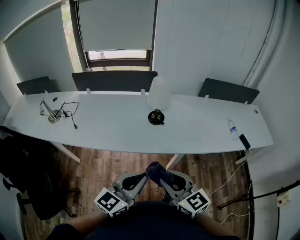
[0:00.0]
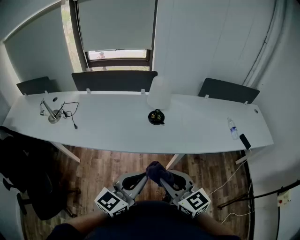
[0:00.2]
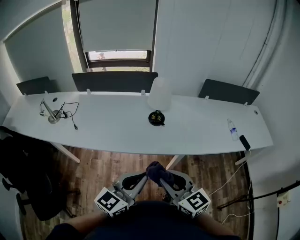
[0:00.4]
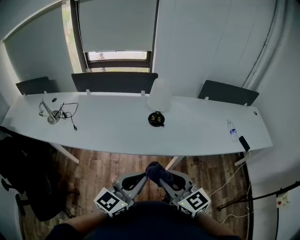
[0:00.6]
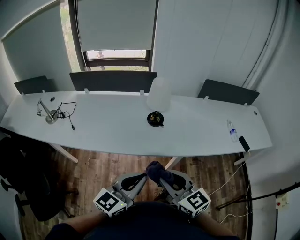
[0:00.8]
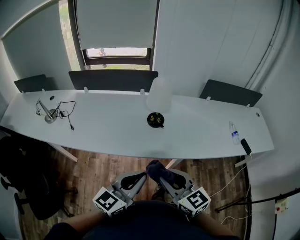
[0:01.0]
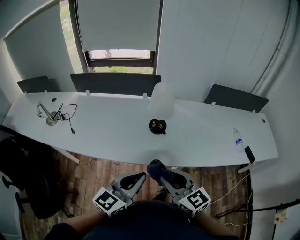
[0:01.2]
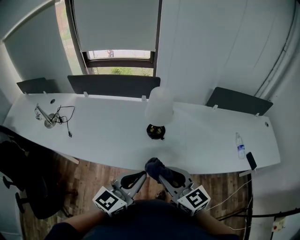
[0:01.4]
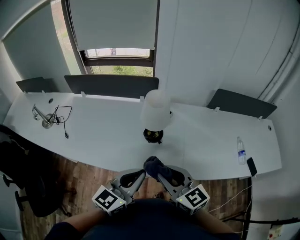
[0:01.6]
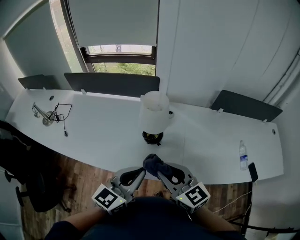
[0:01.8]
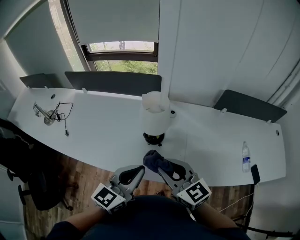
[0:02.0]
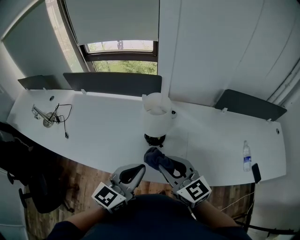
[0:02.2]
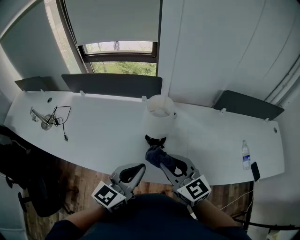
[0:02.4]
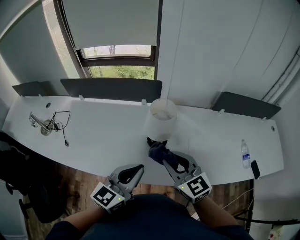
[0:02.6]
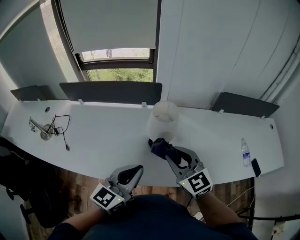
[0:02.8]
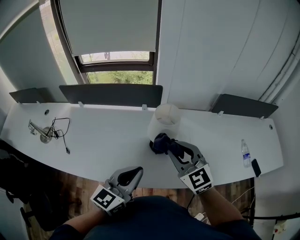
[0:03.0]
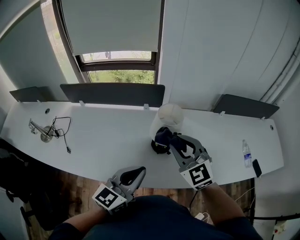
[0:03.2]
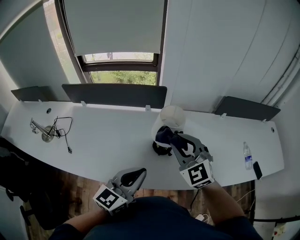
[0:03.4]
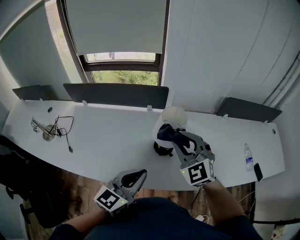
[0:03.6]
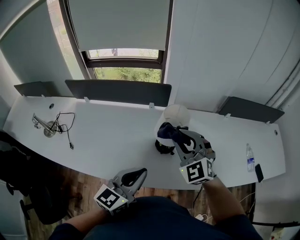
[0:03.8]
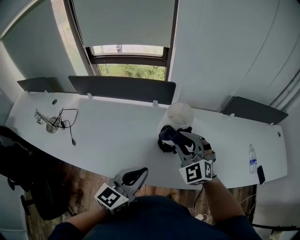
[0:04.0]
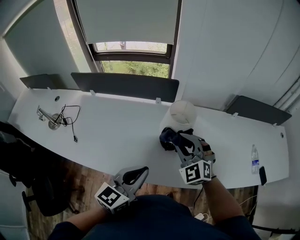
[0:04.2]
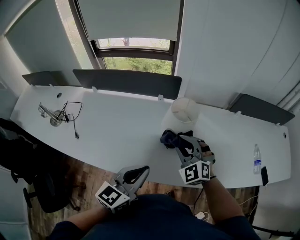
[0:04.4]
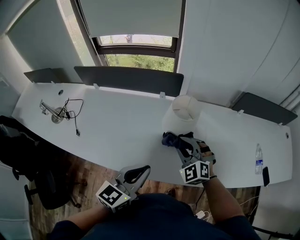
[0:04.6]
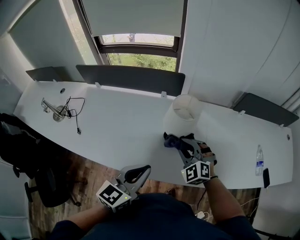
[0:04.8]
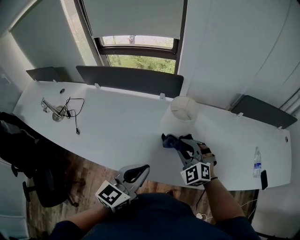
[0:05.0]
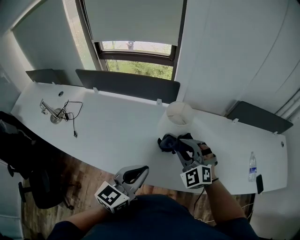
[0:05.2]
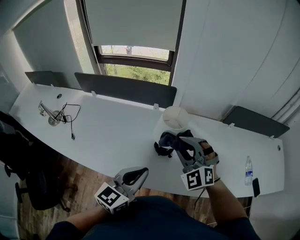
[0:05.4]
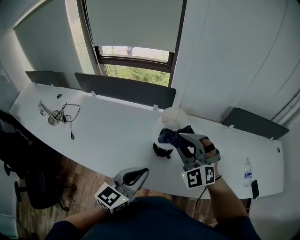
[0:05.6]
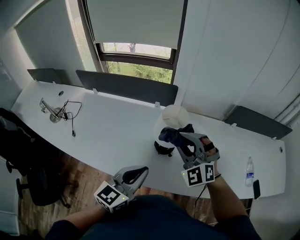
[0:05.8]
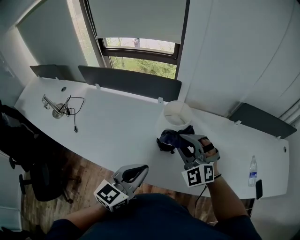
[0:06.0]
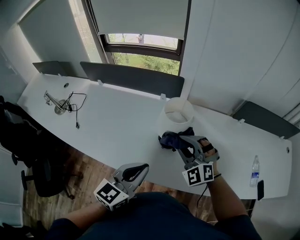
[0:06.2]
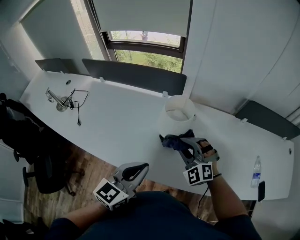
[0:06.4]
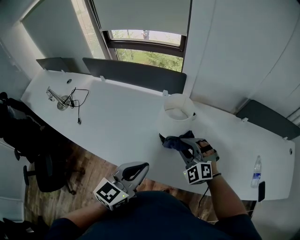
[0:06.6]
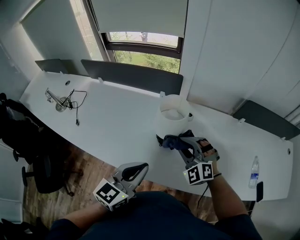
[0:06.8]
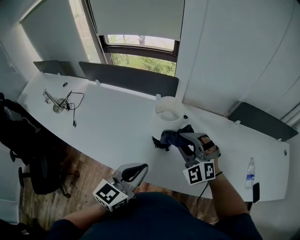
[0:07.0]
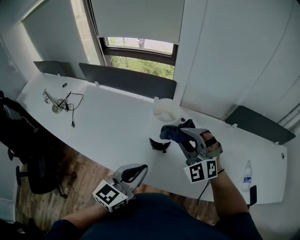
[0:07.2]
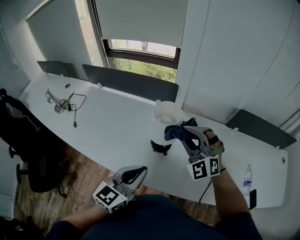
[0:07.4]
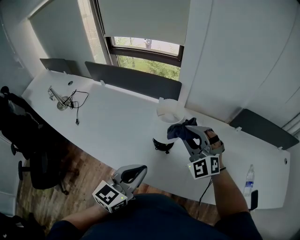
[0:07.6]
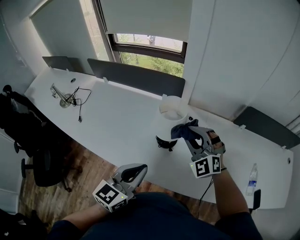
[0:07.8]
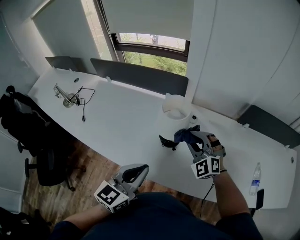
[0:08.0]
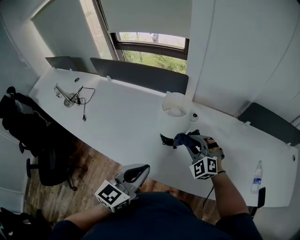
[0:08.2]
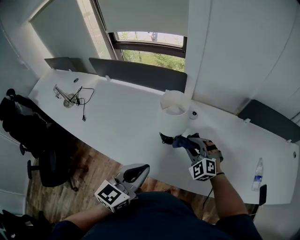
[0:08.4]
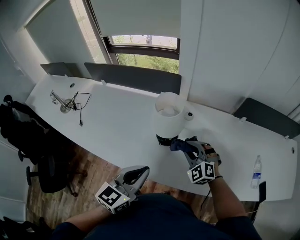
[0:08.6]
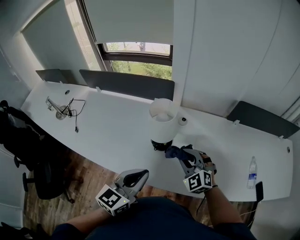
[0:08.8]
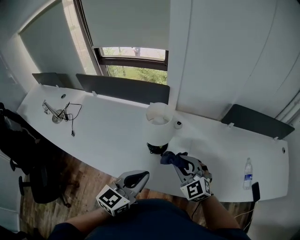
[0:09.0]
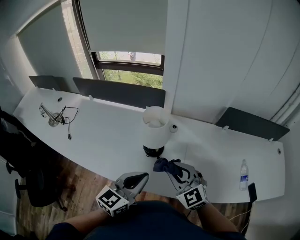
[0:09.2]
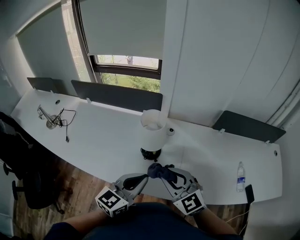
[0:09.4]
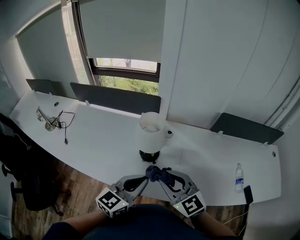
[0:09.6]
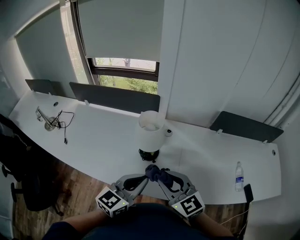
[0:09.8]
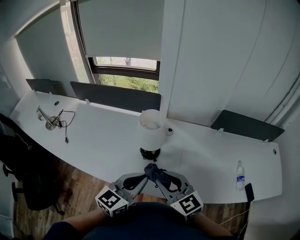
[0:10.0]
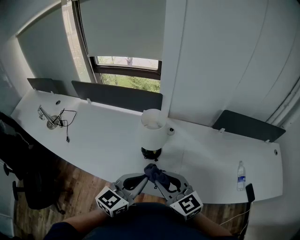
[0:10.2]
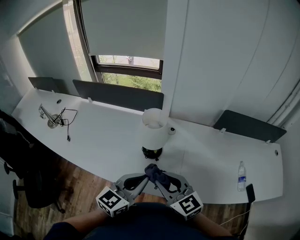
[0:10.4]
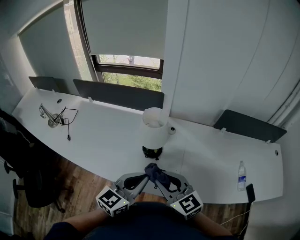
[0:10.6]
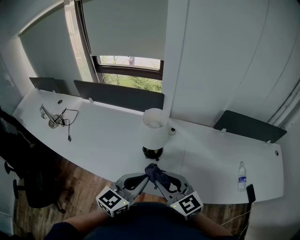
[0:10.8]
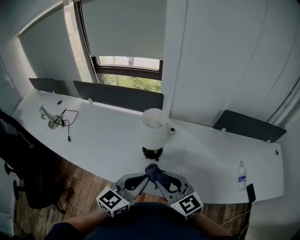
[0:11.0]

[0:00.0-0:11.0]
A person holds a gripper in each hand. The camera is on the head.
0:00.0 to 0:01.6: Both grippers travel together forward, approximately 20 cm.
0:01.6 to 0:03.2: The left gripper moves forward and to the left, roughly 10 cm. Meanwhile the right gripper moves forward, approximately 20 cm, and turns by about 30 degrees.
0:03.2 to 0:04.8: The right gripper heads downward, covering roughly 15 cm, and rotates about 30 degrees.
0:04.8 to 0:06.2: The right gripper is displaced upward by approximately 5 cm.
0:06.2 to 0:07.8: The right gripper moves up and down over some 15 cm, changing direction 2 times.
0:07.8 to 0:09.4: The right gripper heads backward, covering about 15 cm, and swivels approximately 30 degrees.
0:09.4 to 0:11.0: The grippers move only a little.

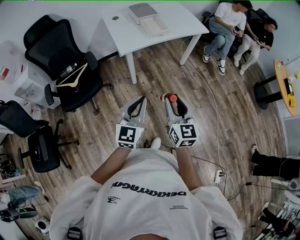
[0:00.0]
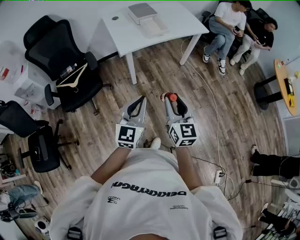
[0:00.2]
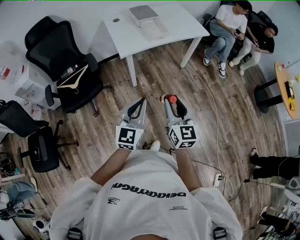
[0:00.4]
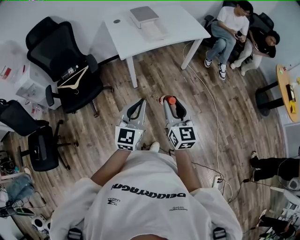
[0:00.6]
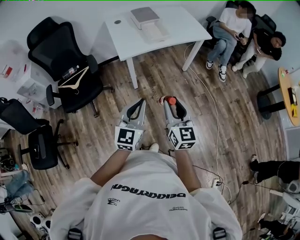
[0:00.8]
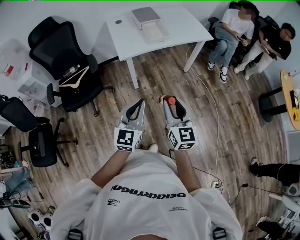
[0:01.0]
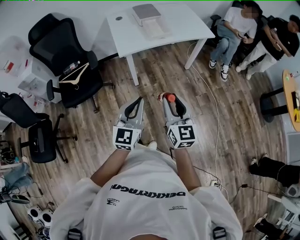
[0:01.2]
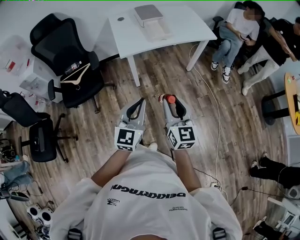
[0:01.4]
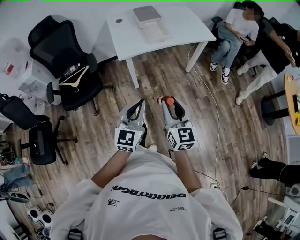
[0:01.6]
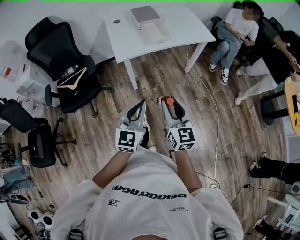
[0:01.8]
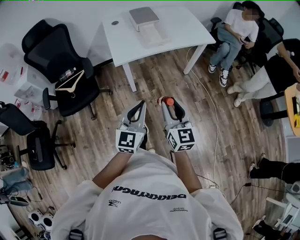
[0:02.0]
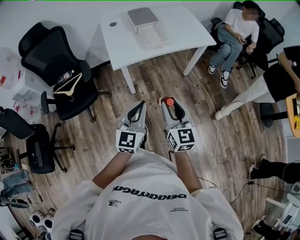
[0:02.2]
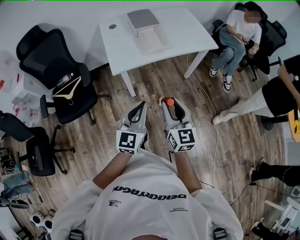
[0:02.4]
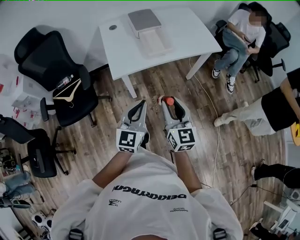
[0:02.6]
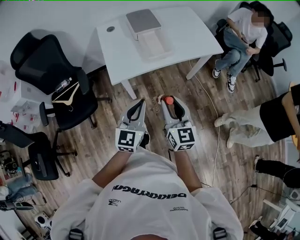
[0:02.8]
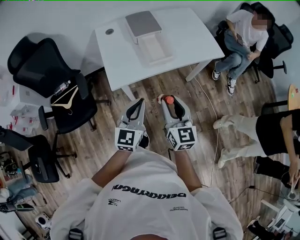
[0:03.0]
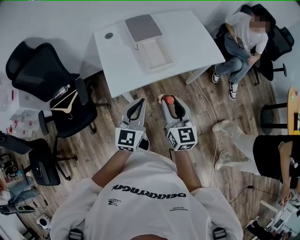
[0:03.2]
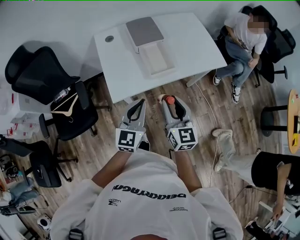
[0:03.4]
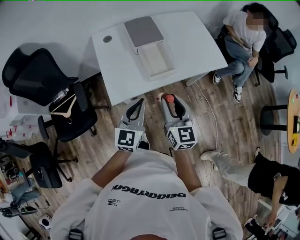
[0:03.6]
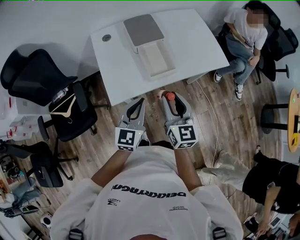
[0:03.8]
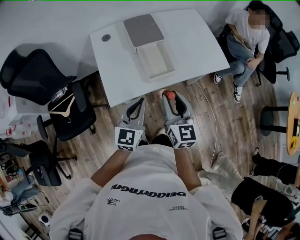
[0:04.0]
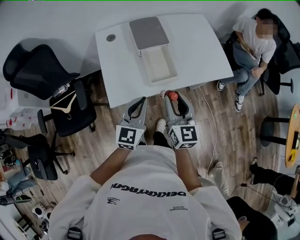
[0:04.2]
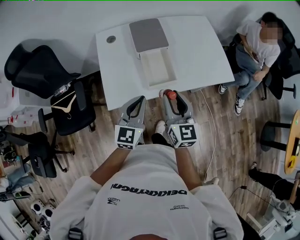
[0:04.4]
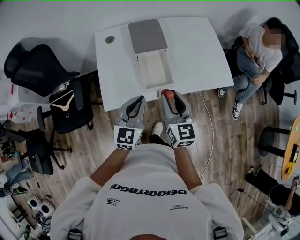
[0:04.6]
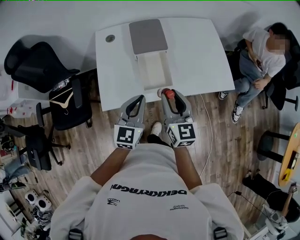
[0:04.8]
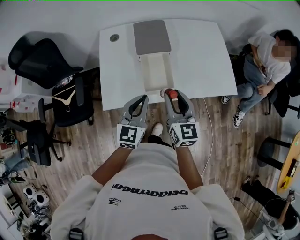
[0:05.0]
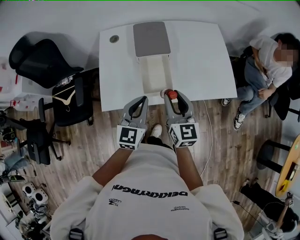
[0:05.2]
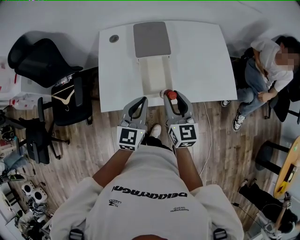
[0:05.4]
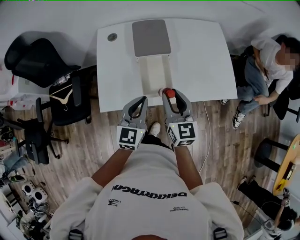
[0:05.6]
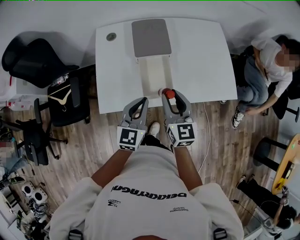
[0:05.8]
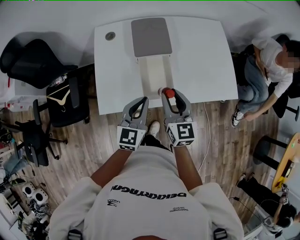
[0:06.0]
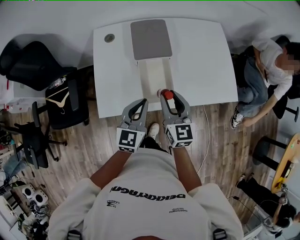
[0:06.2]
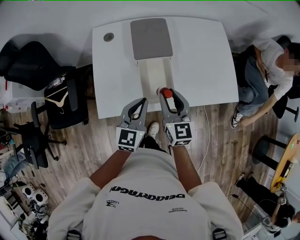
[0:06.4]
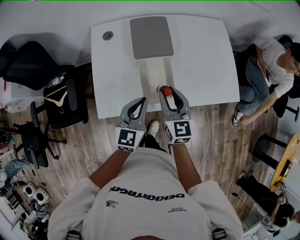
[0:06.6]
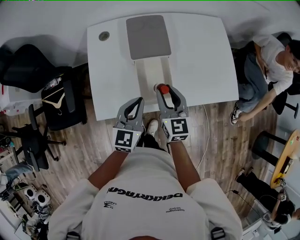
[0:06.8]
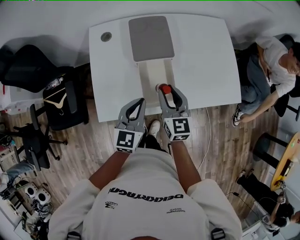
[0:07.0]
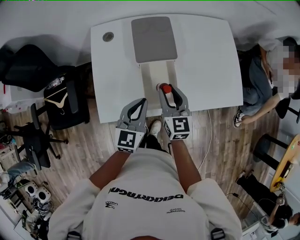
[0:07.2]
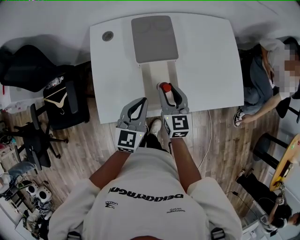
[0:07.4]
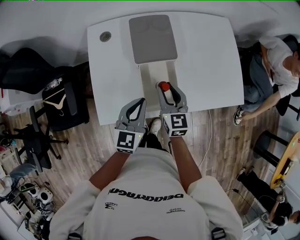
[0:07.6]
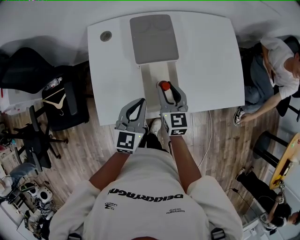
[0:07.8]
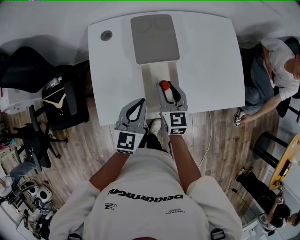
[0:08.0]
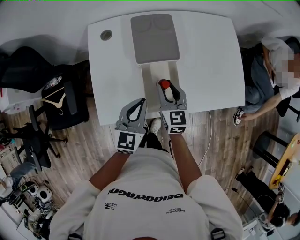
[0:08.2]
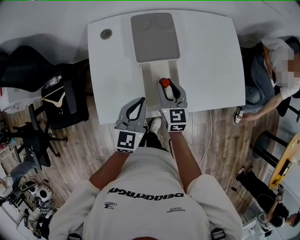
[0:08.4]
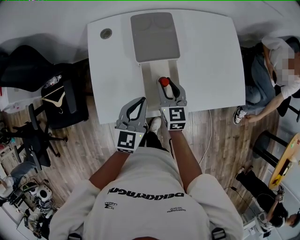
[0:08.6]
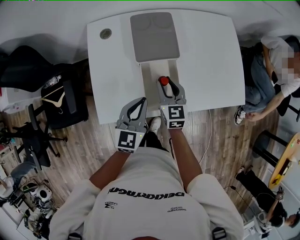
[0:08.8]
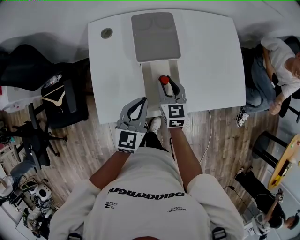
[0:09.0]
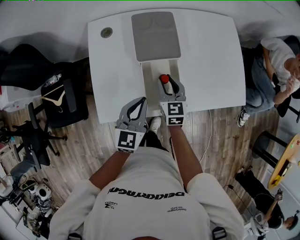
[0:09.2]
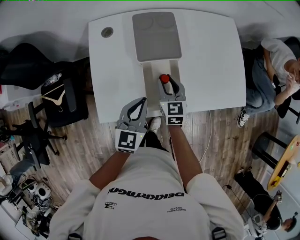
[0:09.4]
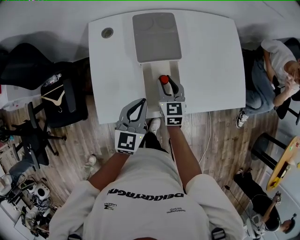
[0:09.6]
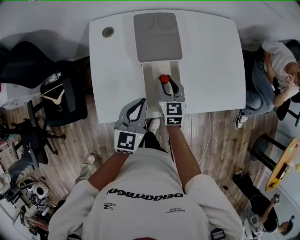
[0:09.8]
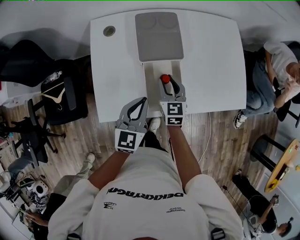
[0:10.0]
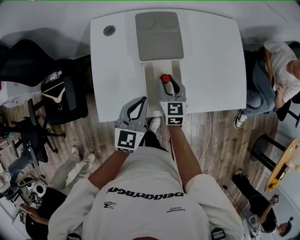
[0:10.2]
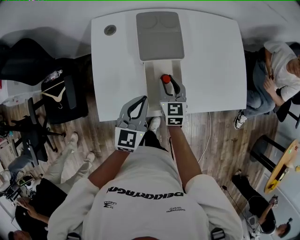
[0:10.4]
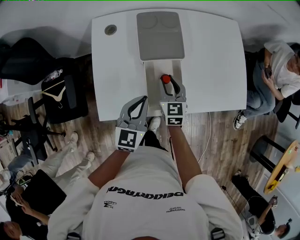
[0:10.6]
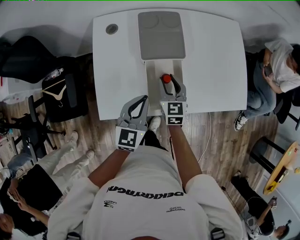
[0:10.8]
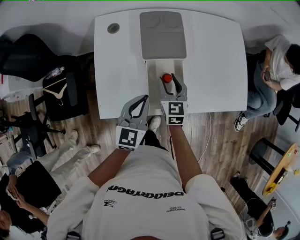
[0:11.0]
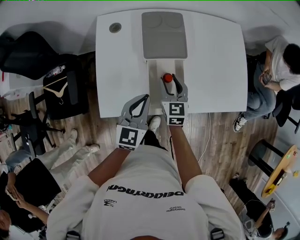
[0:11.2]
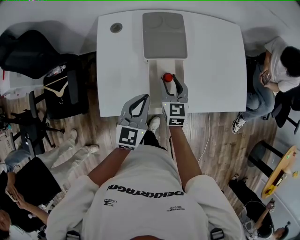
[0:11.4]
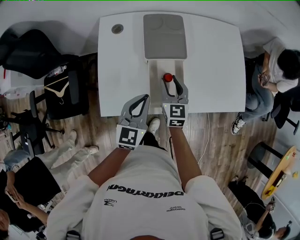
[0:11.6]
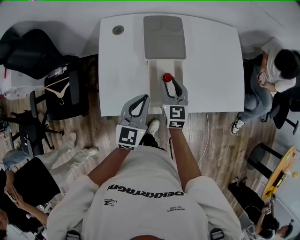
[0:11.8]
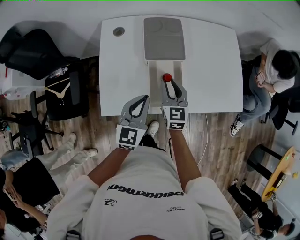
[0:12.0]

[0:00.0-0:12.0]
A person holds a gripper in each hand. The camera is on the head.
0:00.0 to 0:01.6: The left gripper is displaced to the right and forward by some 10 cm, while the right gripper shifts approximately 10 cm forward and to the right.
0:01.6 to 0:03.0: Both grippers move forward, about 30 cm.
0:03.0 to 0:04.4: Both grippers travel together forward, about 20 cm.
0:04.4 to 0:06.0: Both grippers move forward, approximately 10 cm.
0:06.0 to 0:07.6: The right gripper travels downward and forward by approximately 15 cm; the left gripper is displaced forward by roughly 5 cm.
0:07.6 to 0:09.0: The grippers make only small movements.
0:09.0 to 0:10.4: There are only small adjustments of the grippers.
0:10.4 to 0:12.0: The right gripper shifts roughly 5 cm upward.

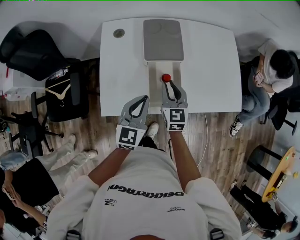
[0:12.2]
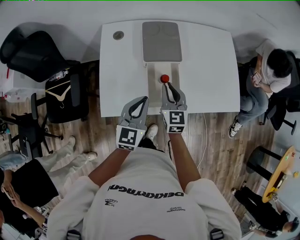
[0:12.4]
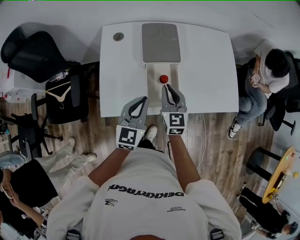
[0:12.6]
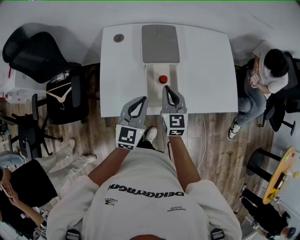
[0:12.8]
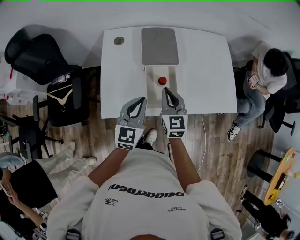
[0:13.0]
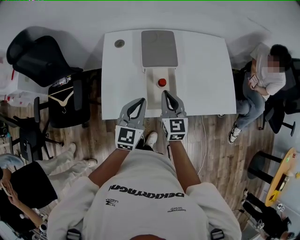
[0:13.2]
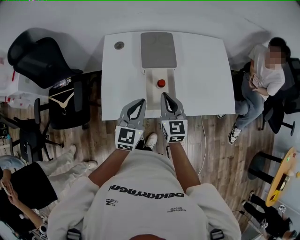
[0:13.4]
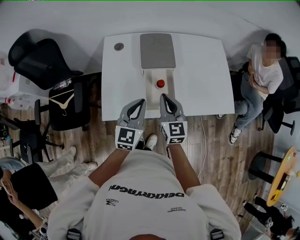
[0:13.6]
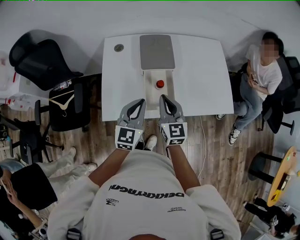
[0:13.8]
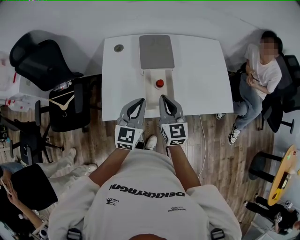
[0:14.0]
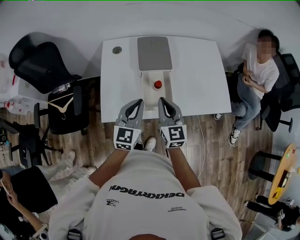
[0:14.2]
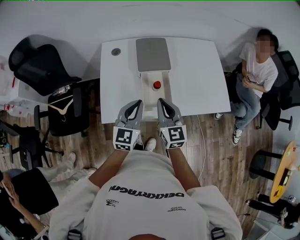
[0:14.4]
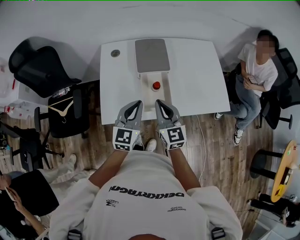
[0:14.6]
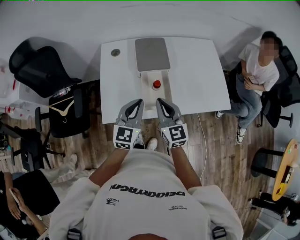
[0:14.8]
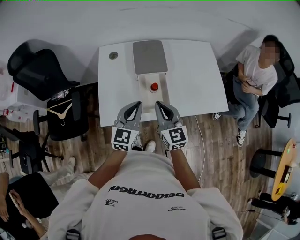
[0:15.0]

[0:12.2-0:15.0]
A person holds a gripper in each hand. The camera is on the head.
0:12.2 to 0:13.6: The right gripper shifts about 10 cm upward and backward.
0:13.6 to 0:15.0: The right gripper ends up some 5 cm from where it was.
